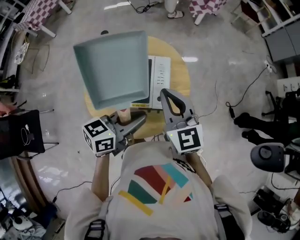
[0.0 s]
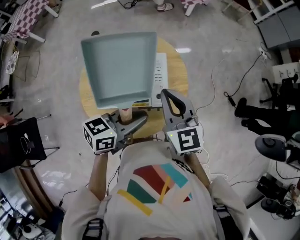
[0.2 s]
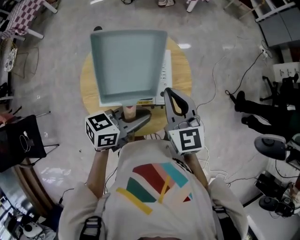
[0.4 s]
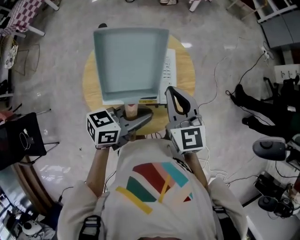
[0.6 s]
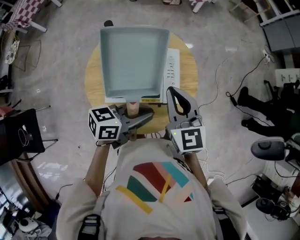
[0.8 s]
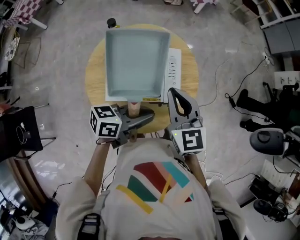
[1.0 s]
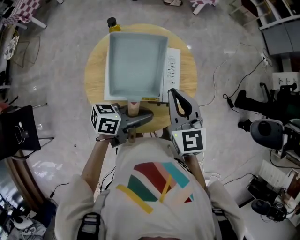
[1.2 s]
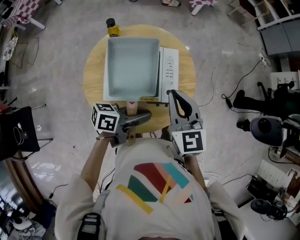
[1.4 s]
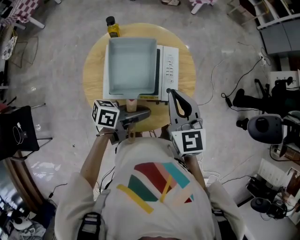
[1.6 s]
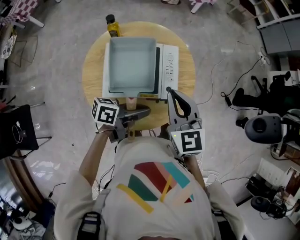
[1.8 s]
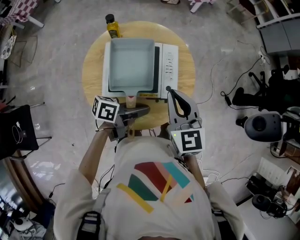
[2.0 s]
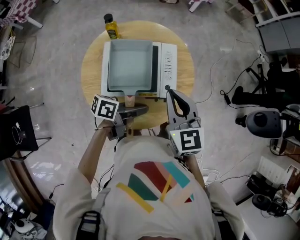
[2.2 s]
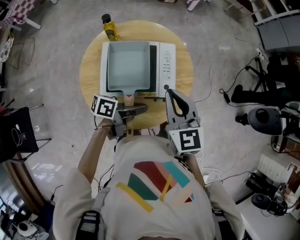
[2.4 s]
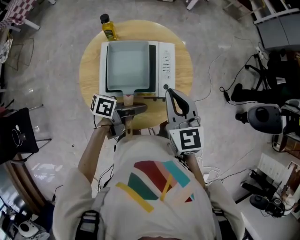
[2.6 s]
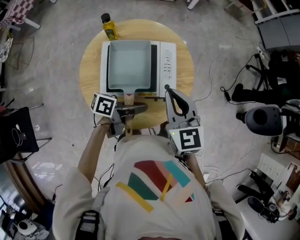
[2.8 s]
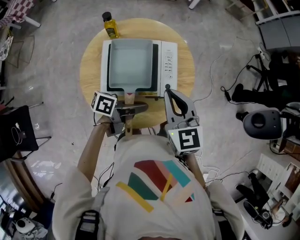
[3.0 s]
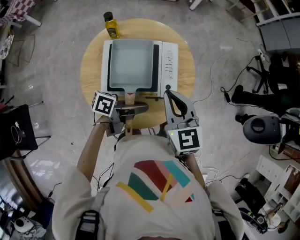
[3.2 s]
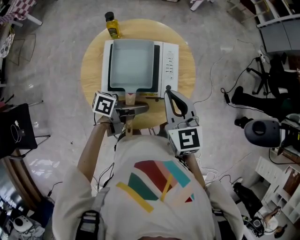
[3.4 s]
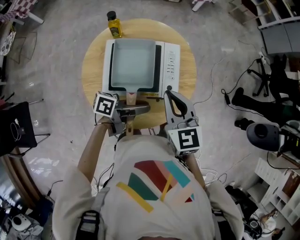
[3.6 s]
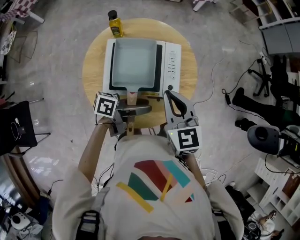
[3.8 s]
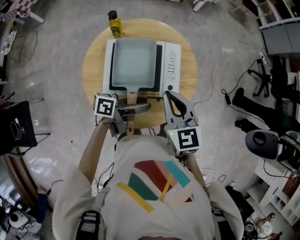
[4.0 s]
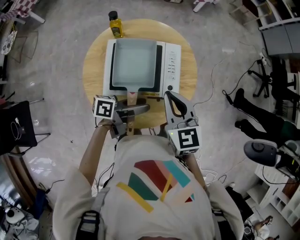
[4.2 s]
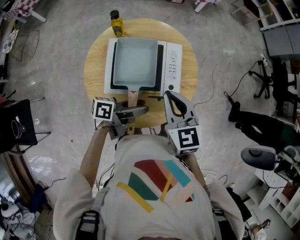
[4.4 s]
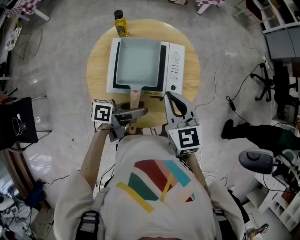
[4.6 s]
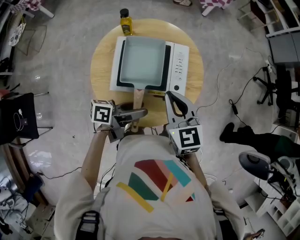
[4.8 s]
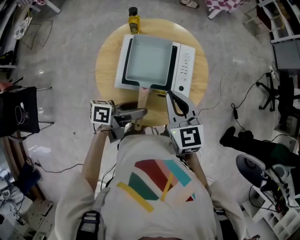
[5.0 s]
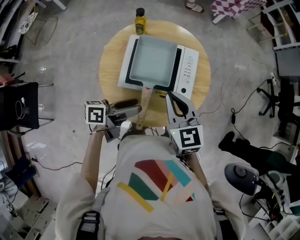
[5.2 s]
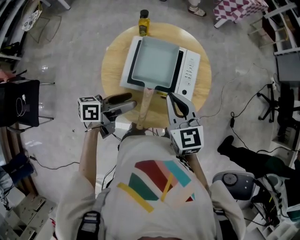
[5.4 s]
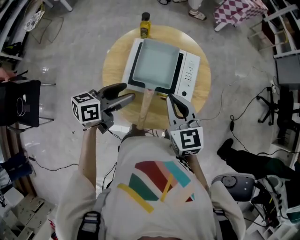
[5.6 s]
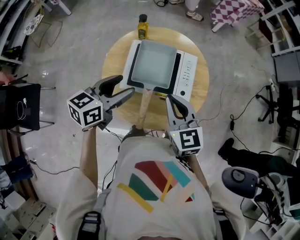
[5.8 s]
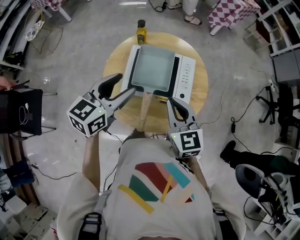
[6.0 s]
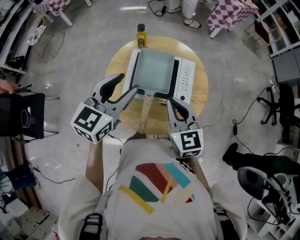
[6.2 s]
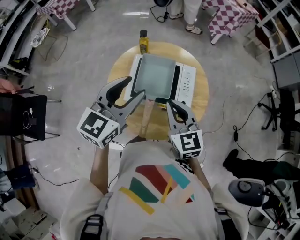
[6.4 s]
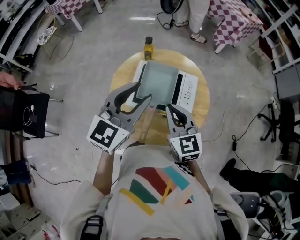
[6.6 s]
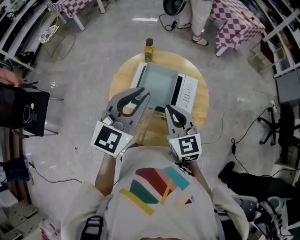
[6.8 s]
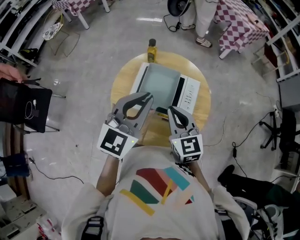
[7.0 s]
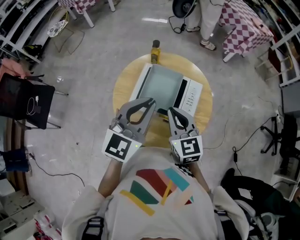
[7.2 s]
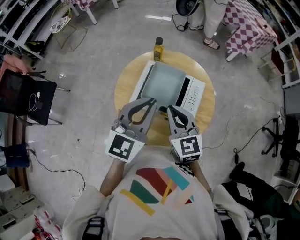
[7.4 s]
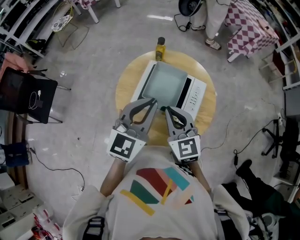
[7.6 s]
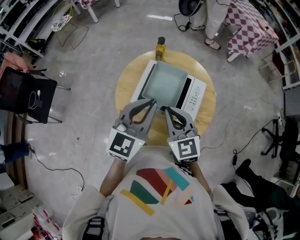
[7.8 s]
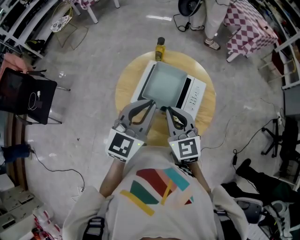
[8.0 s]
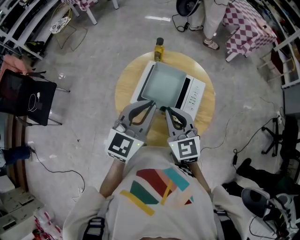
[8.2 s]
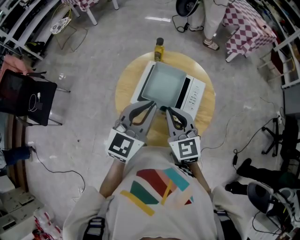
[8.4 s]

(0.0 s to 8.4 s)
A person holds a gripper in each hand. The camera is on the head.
0.0 s - 1.4 s: The left gripper shifts about 5 cm downward, and swivels about 30 degrees.
1.4 s - 2.8 s: The grippers move only a little.
2.8 s - 4.2 s: The left gripper opens its fingers.
4.2 s - 5.6 s: The left gripper shifts roughly 15 cm to the left and upward, and swivels approximately 40 degrees. Meanwhile the right gripper ends up some 5 cm from where it was.
5.6 s - 7.0 s: The left gripper moves upward and to the right, some 15 cm, twists approximately 40 degrees clockwise, seen from behind, and closes up.
7.0 s - 8.4 s: The grippers make only small movements.

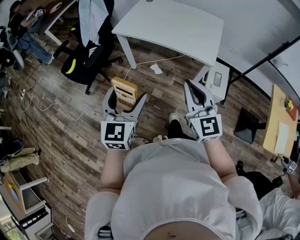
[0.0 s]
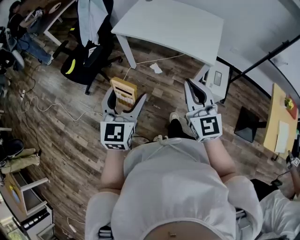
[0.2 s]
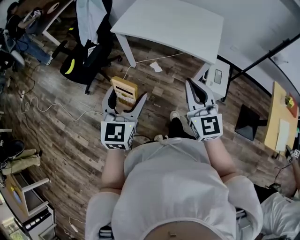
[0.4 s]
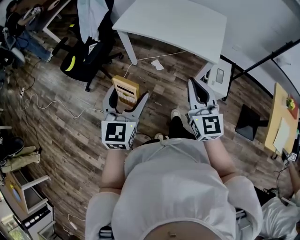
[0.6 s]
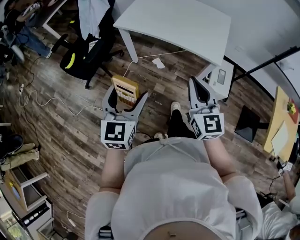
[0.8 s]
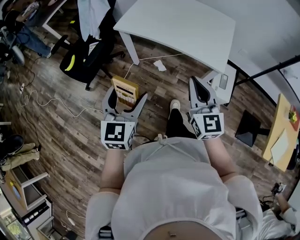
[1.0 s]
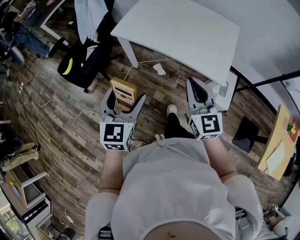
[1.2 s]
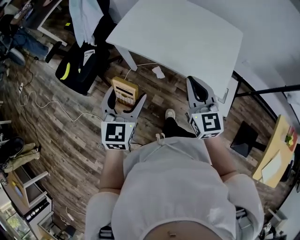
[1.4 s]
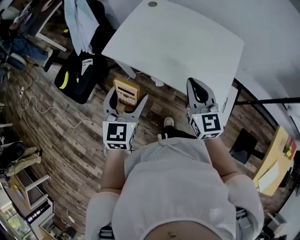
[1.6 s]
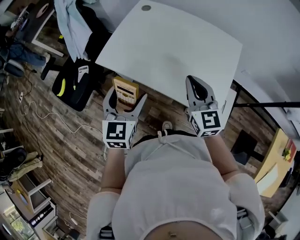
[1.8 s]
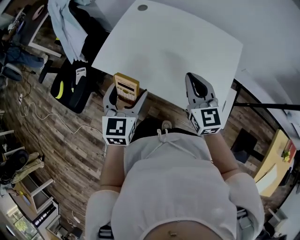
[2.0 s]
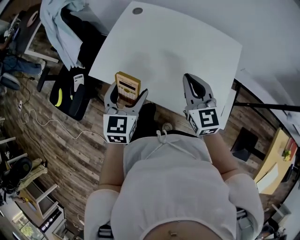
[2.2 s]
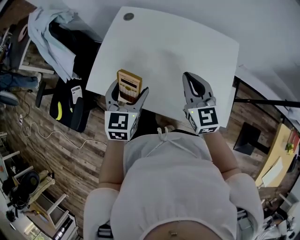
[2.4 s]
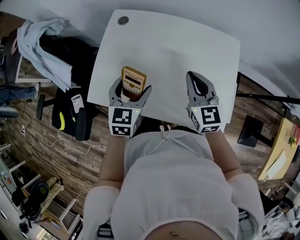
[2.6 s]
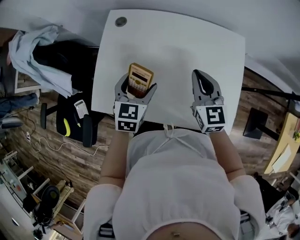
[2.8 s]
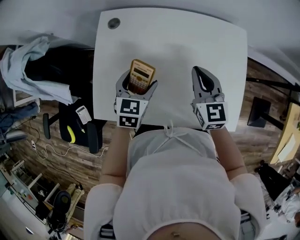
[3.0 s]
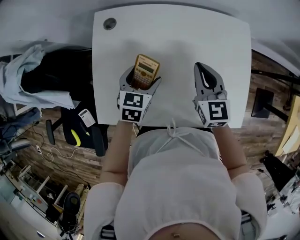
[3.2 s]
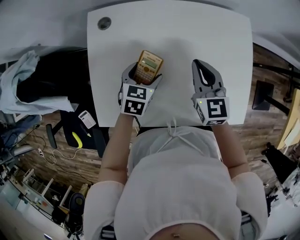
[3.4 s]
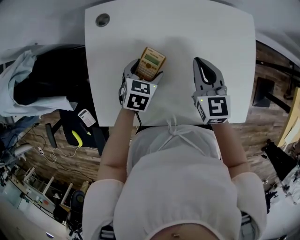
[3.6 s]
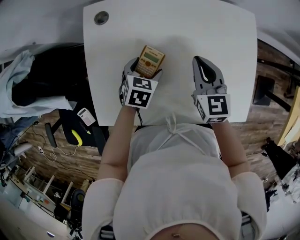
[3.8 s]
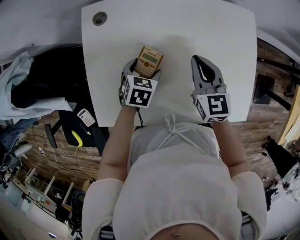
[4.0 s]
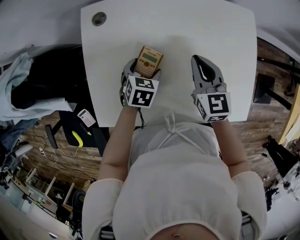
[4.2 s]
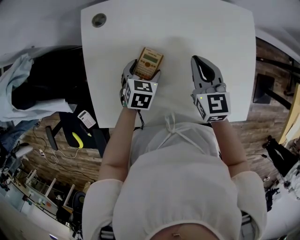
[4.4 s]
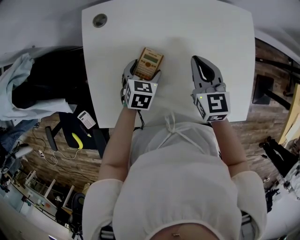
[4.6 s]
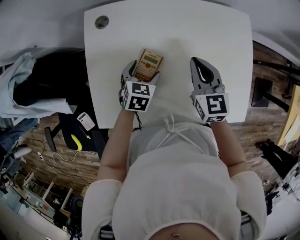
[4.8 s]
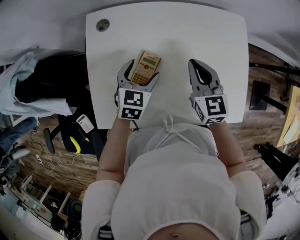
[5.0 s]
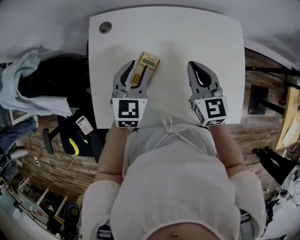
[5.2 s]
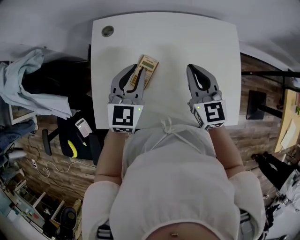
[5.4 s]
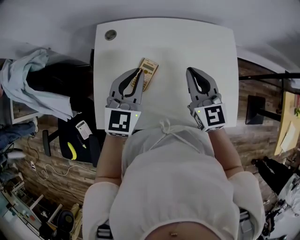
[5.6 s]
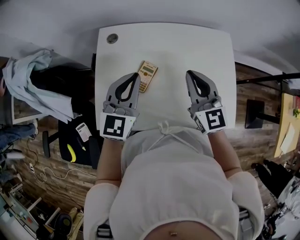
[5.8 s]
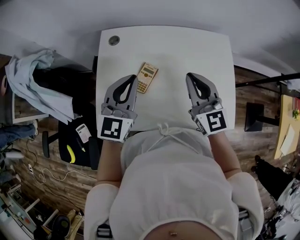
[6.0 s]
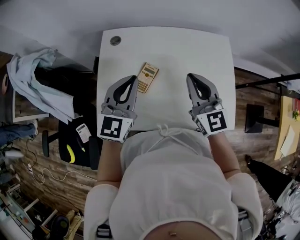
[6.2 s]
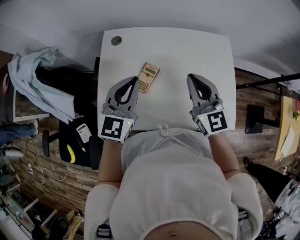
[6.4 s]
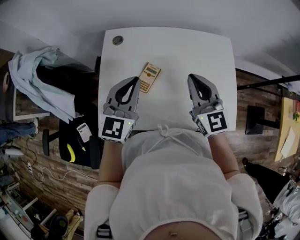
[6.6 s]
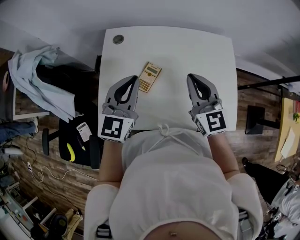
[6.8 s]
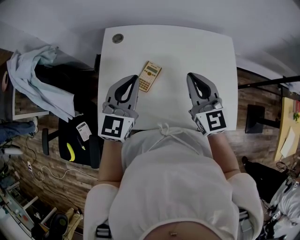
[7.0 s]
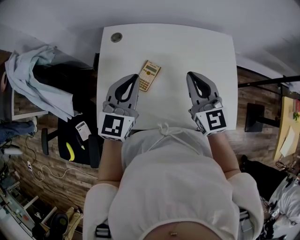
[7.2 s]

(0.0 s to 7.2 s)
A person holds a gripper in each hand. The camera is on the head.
0.0 s - 1.4 s: Both grippers travel together forward, about 25 cm.
1.4 s - 2.8 s: The grippers both shift forward by roughly 40 cm. The right gripper rotates approximately 20 degrees. The left gripper swivels roughly 30 degrees.
2.8 s - 4.4 s: The right gripper is displaced downward and forward by some 10 cm, while the left gripper shifts approximately 20 cm downward and forward, and rotates roughly 20 degrees.
4.4 s - 5.8 s: The right gripper travels upward and backward by roughly 15 cm, and turns by some 20 degrees. Meanwhile the left gripper heads upward, covering about 25 cm, angles its fingers upward, by about 40 degrees, and closes.
5.8 s - 7.2 s: There are only small adjustments of the grippers.

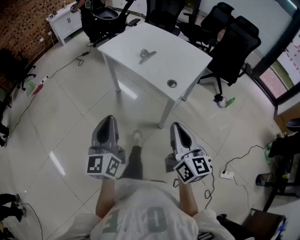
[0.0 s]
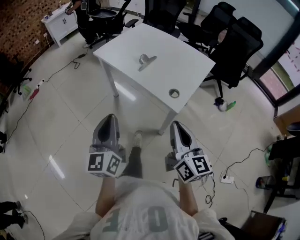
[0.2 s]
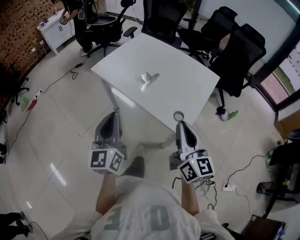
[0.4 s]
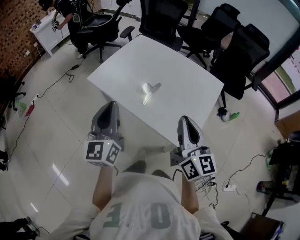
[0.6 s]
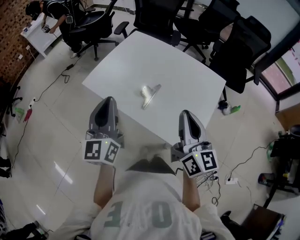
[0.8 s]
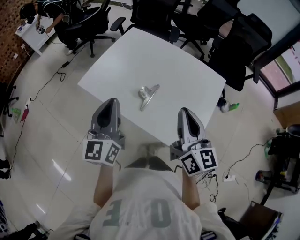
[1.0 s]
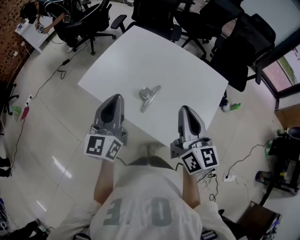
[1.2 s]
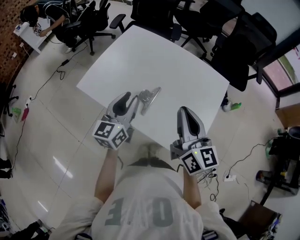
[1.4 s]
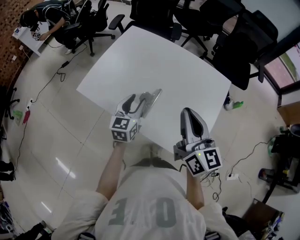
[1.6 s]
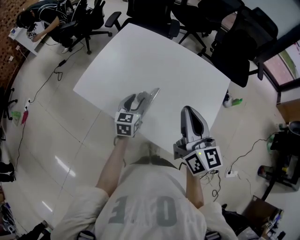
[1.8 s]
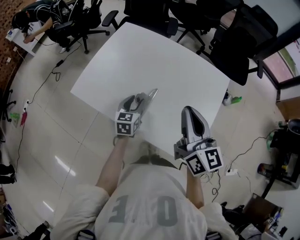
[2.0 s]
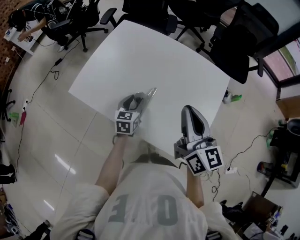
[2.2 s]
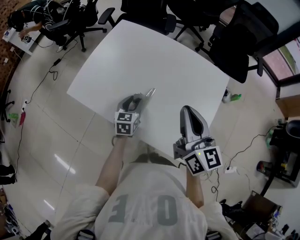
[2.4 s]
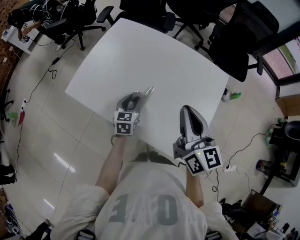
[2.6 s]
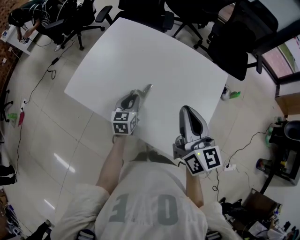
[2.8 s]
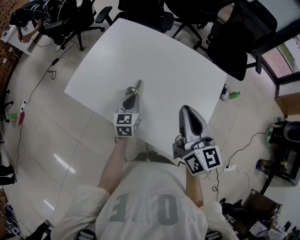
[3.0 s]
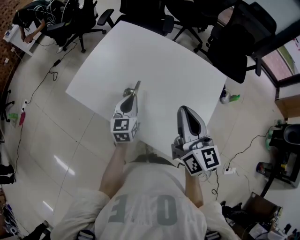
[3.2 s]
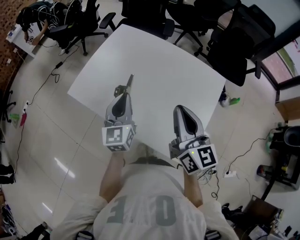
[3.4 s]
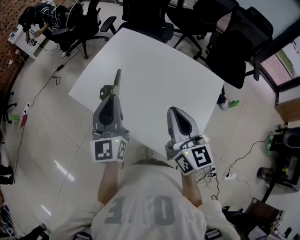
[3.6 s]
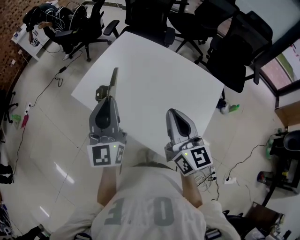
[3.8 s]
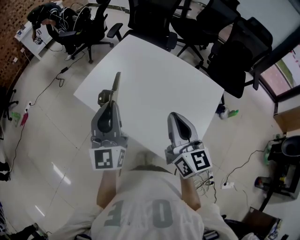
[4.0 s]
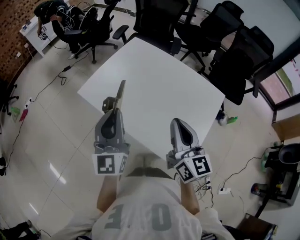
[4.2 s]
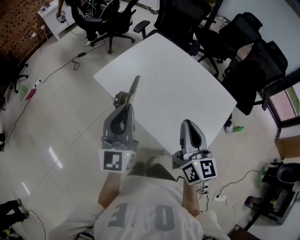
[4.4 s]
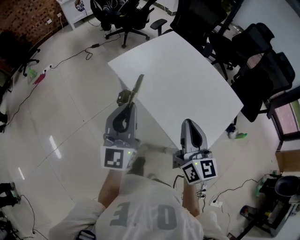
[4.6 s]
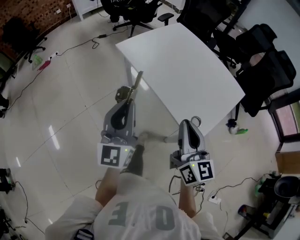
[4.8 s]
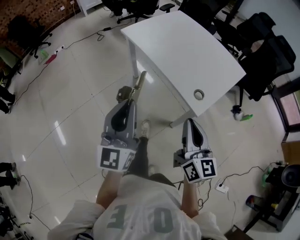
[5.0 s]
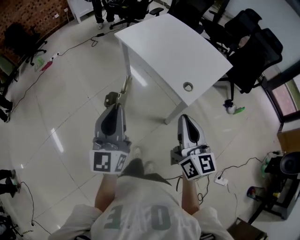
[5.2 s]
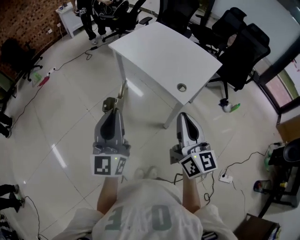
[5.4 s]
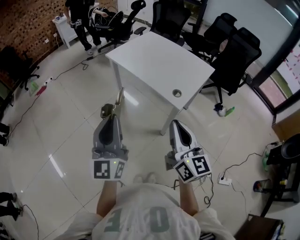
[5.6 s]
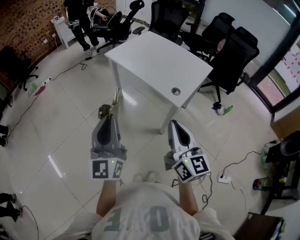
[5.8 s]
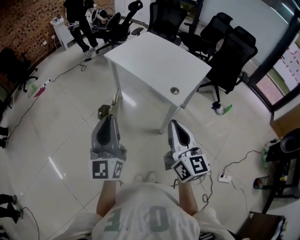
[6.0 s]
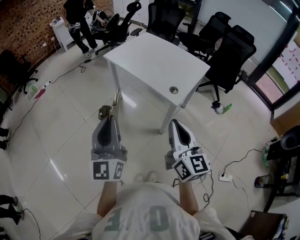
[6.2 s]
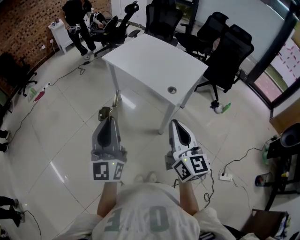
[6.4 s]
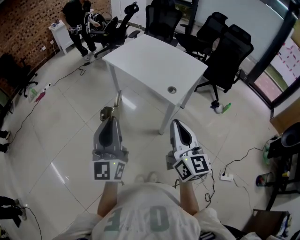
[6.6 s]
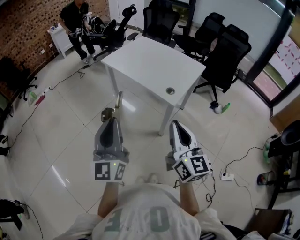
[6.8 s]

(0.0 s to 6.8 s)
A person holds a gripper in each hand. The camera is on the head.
0.0 s - 1.4 s: The pair of grippers is taken forward, roughly 50 cm. The left gripper rotates roughly 30 degrees, and opens up.
1.4 s - 2.8 s: The left gripper is displaced downward by about 20 cm, and swivels some 20 degrees. The right gripper shifts by some 5 cm.
2.8 s - 4.0 s: The right gripper changes place by roughly 5 cm; the left gripper travels upward by some 30 cm, and tips its fingers upward by some 40 degrees.
4.0 s - 5.4 s: Both grippers are carried backward, approximately 50 cm.
5.4 s - 6.8 s: The grippers both shift backward by about 5 cm.

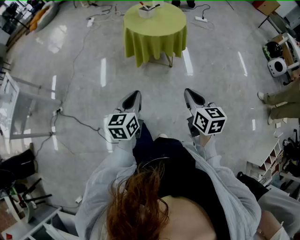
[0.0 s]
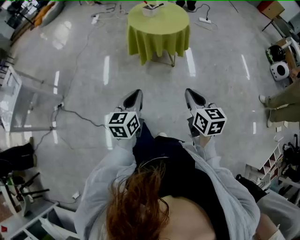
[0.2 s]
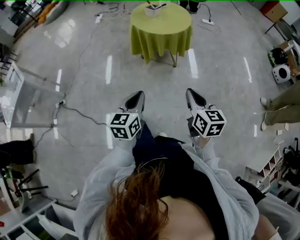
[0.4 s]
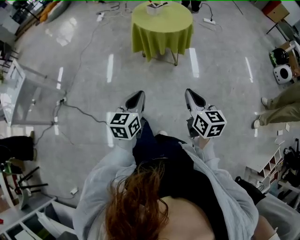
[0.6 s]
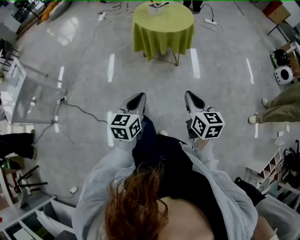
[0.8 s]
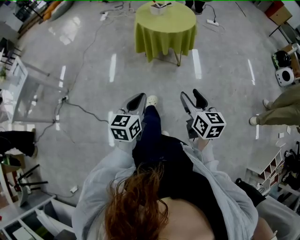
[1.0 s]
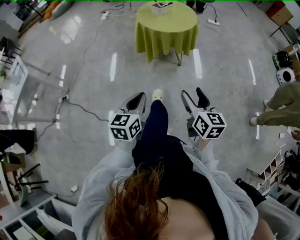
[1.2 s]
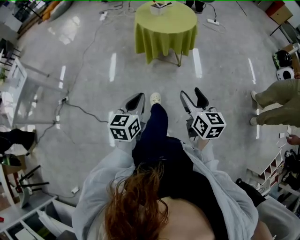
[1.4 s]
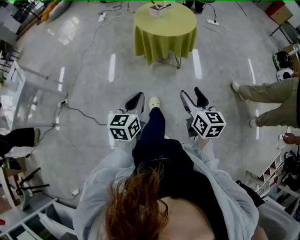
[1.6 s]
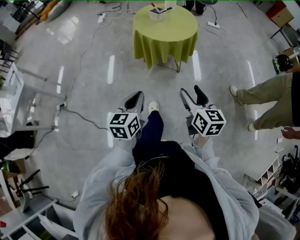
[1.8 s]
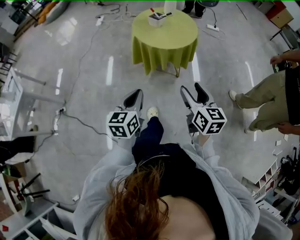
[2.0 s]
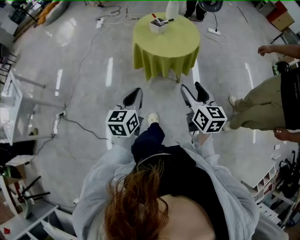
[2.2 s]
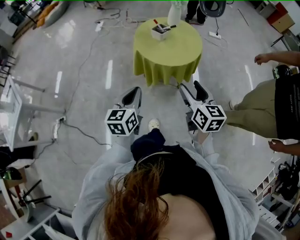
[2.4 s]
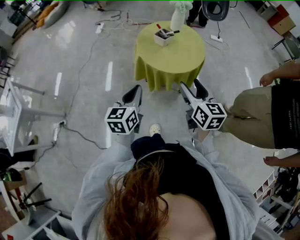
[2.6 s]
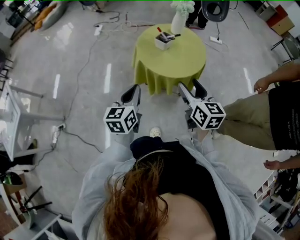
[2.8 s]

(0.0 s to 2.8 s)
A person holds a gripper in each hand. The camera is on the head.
0.0 s - 1.4 s: The right gripper opens up.
1.4 s - 2.8 s: The two grippers go roughly 35 cm forward.
